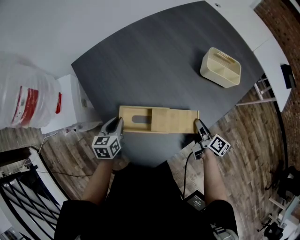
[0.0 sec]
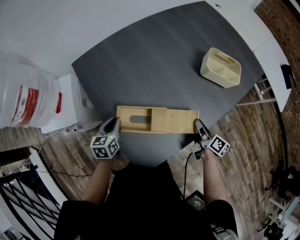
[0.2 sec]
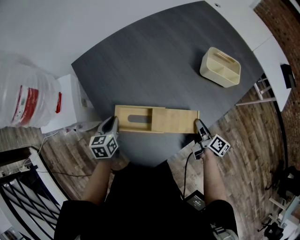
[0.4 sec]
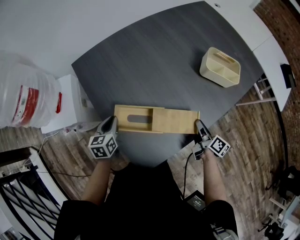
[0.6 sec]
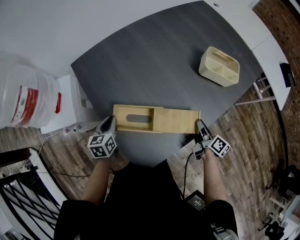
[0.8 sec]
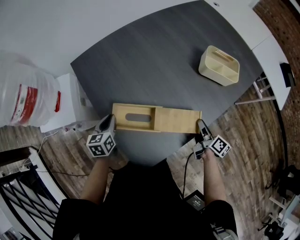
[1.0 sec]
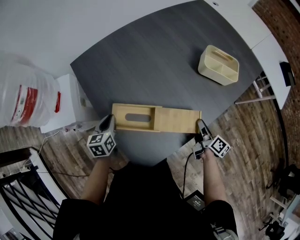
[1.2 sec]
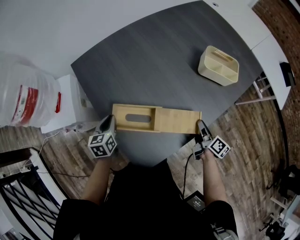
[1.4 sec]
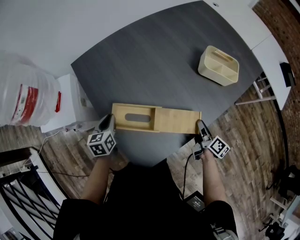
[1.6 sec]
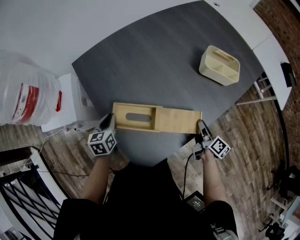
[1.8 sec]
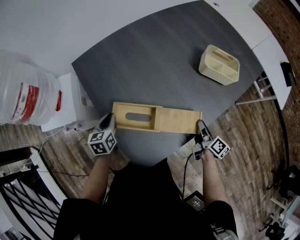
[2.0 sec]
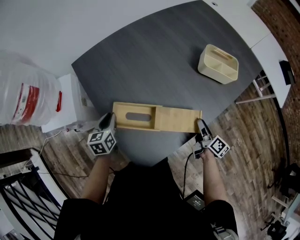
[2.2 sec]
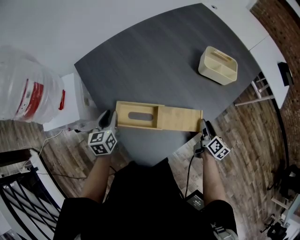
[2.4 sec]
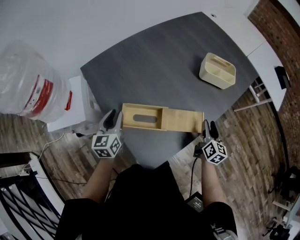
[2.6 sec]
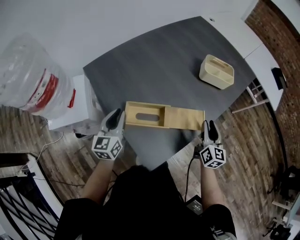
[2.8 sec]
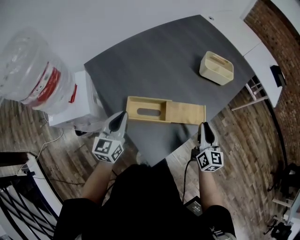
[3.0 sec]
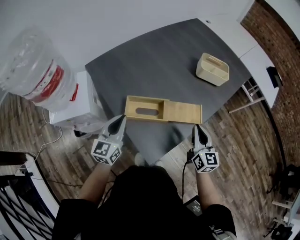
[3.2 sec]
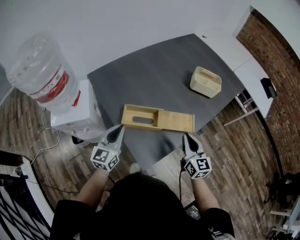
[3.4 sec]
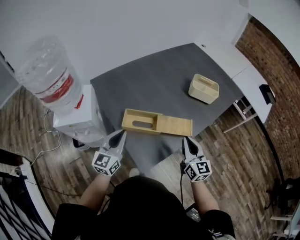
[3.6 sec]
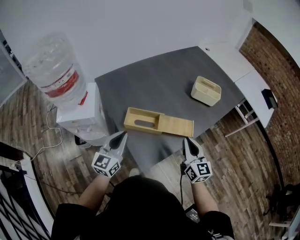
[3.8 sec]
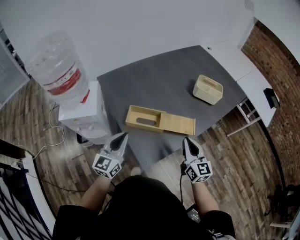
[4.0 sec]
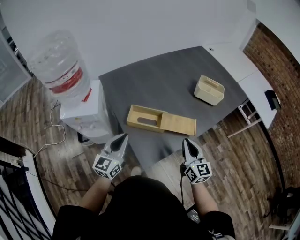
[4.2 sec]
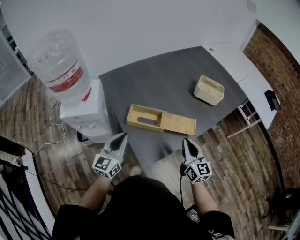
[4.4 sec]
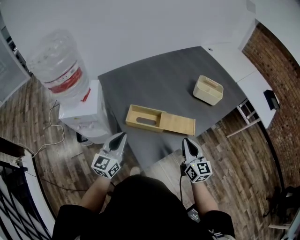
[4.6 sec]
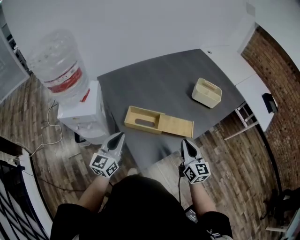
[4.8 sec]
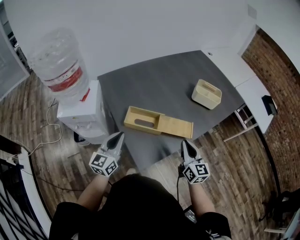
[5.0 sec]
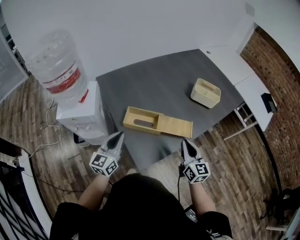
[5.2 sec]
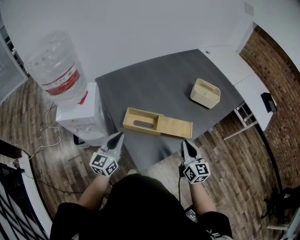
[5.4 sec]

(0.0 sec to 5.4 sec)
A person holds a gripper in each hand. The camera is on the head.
0.0 sec - 1.4 sec: The grippers stay close to where they were, moving slightly.
1.4 sec - 2.8 sec: The grippers both shift upward by about 10 cm. The left gripper swivels some 30 degrees, while the right gripper rolls counterclockwise, seen from behind, by roughly 40 degrees.
2.8 sec - 4.0 sec: The right gripper moves backward, to the left and upward, about 15 cm, changes its angle by some 20 degrees, and closes; the left gripper shifts roughly 10 cm backward.
4.0 sec - 5.4 sec: The grippers move only a little.

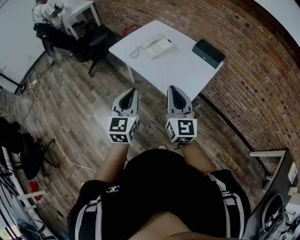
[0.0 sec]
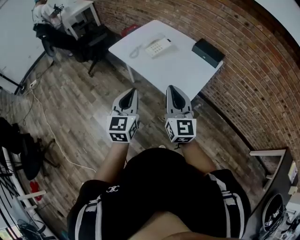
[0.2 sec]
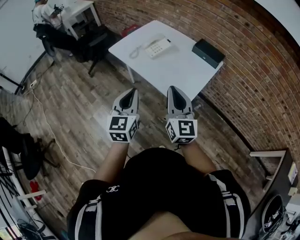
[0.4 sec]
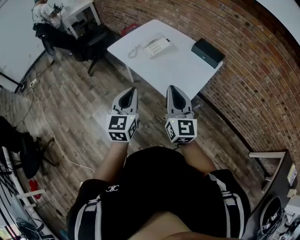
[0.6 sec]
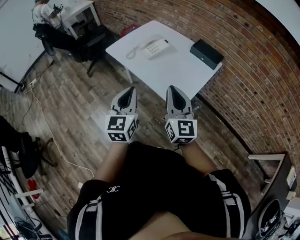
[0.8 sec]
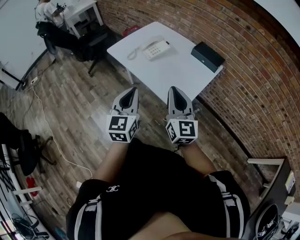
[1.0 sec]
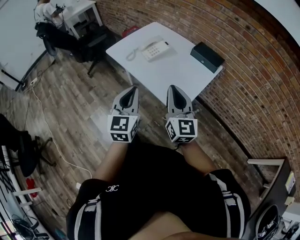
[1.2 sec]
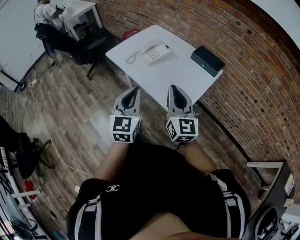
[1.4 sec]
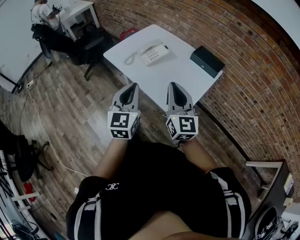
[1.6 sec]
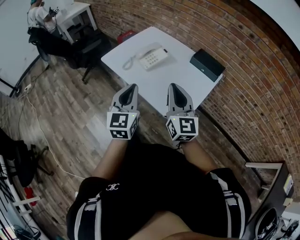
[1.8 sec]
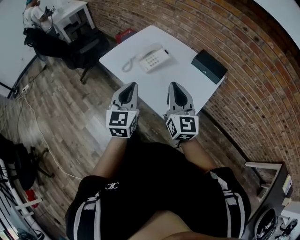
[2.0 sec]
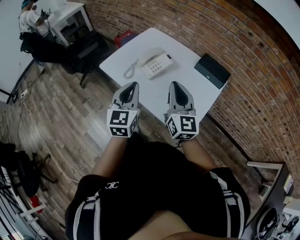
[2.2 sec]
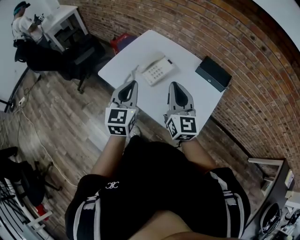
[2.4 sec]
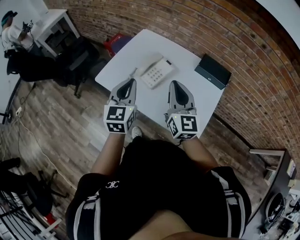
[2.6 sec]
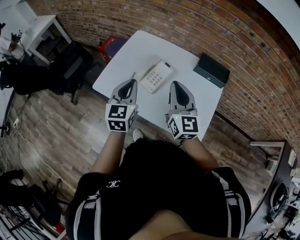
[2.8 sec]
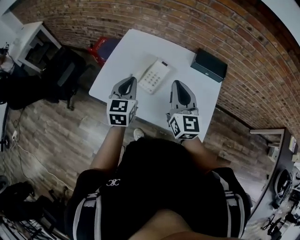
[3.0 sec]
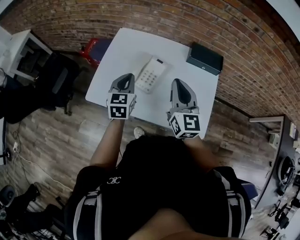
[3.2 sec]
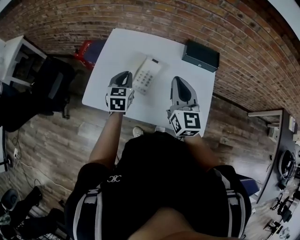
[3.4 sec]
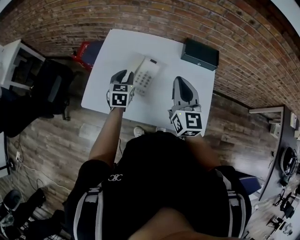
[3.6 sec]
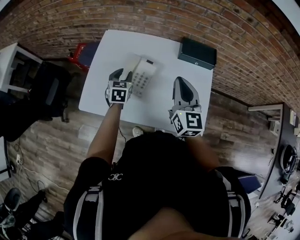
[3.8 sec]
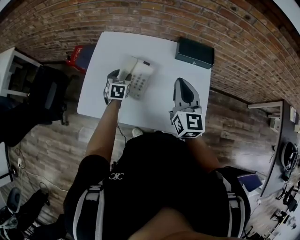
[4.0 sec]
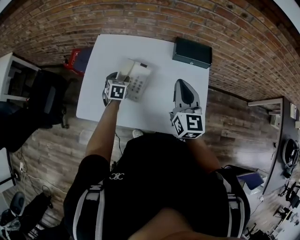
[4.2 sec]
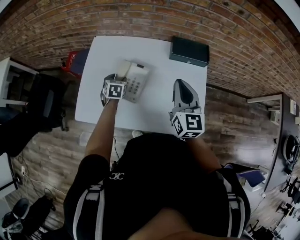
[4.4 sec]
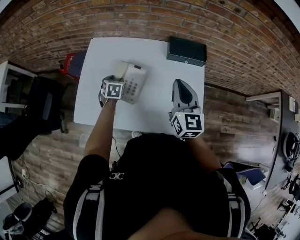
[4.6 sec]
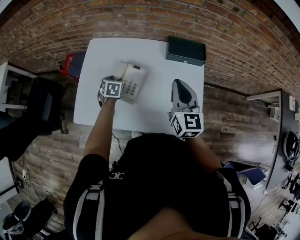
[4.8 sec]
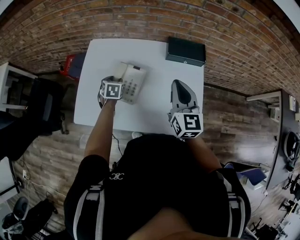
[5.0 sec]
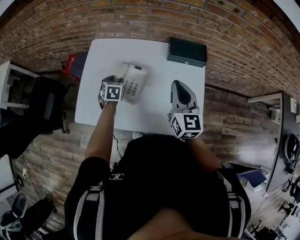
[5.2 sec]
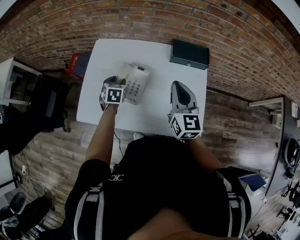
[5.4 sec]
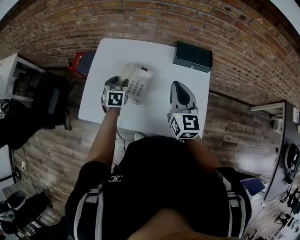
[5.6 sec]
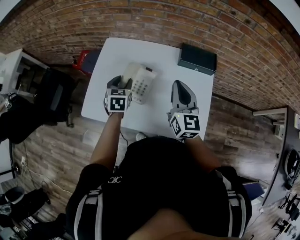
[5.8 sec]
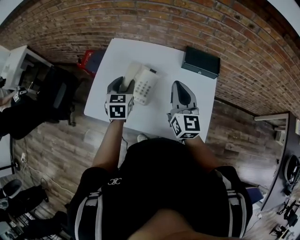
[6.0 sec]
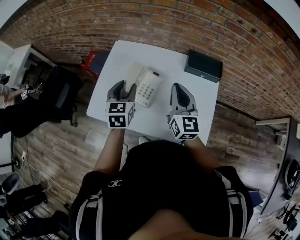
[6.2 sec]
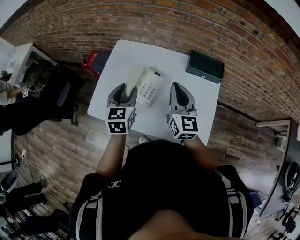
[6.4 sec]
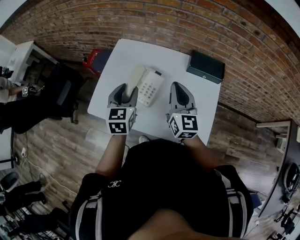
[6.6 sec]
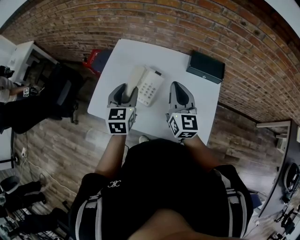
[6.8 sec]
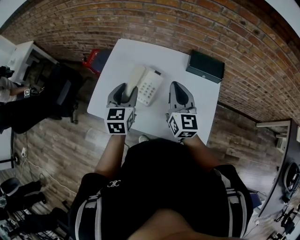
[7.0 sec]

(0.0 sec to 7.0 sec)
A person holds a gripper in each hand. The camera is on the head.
0.0 sec - 1.4 sec: The right gripper is displaced forward by roughly 5 cm, while the left gripper shifts roughly 5 cm to the right and forward.
1.4 sec - 2.8 sec: Both grippers move forward, about 30 cm. The left gripper changes its angle by approximately 20 degrees.
2.8 sec - 4.2 sec: The left gripper shifts some 30 cm downward and forward, tips its fingers downward by roughly 30 degrees, and opens its fingers. Meanwhile the right gripper moves to the right and forward, some 10 cm, and changes its angle by some 20 degrees.
4.2 sec - 5.6 sec: The left gripper heads upward, covering some 5 cm.
5.6 sec - 7.0 sec: The right gripper is displaced to the left by roughly 5 cm. Meanwhile the left gripper travels upward and backward by about 15 cm, and swivels approximately 20 degrees.

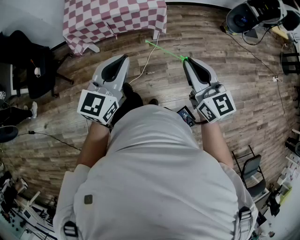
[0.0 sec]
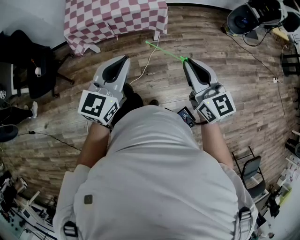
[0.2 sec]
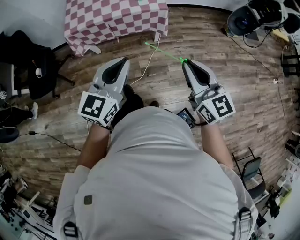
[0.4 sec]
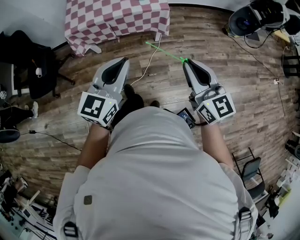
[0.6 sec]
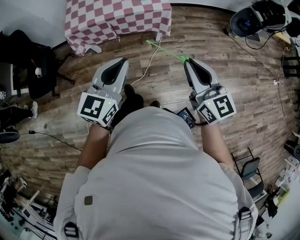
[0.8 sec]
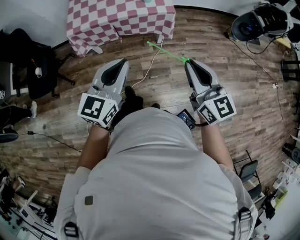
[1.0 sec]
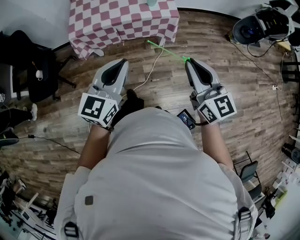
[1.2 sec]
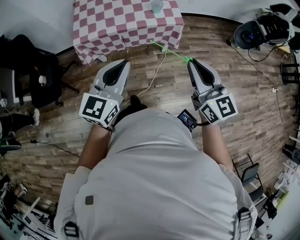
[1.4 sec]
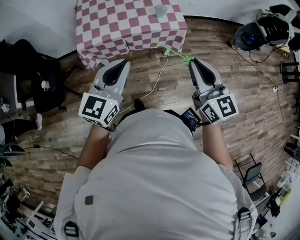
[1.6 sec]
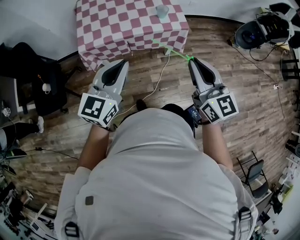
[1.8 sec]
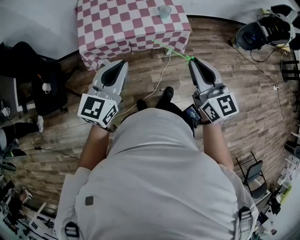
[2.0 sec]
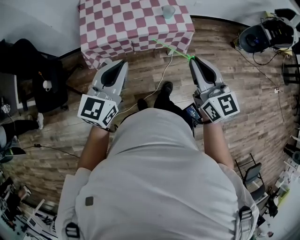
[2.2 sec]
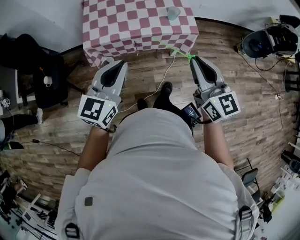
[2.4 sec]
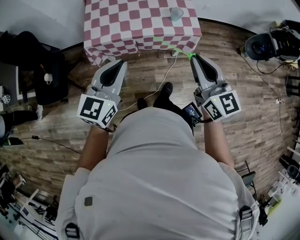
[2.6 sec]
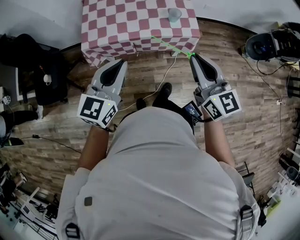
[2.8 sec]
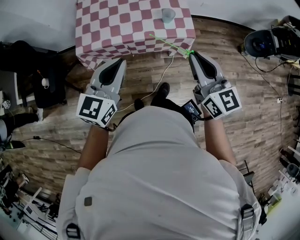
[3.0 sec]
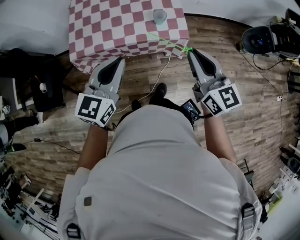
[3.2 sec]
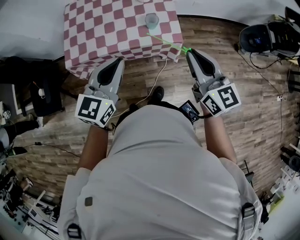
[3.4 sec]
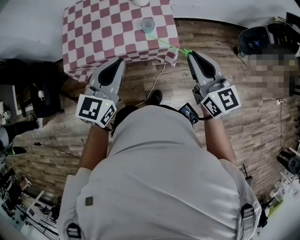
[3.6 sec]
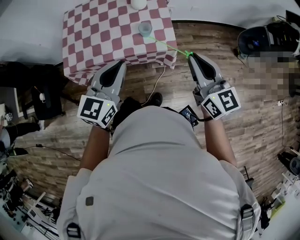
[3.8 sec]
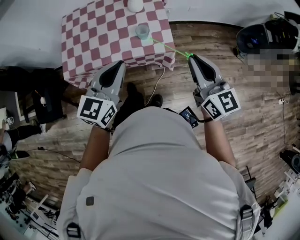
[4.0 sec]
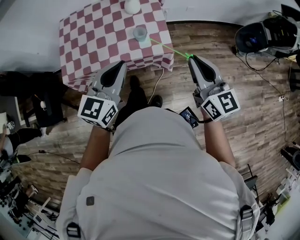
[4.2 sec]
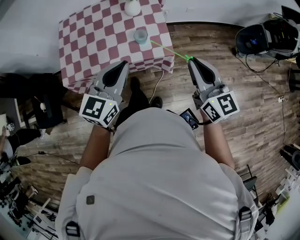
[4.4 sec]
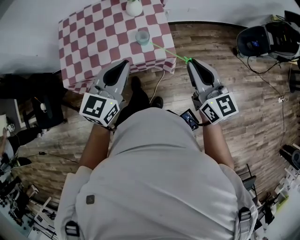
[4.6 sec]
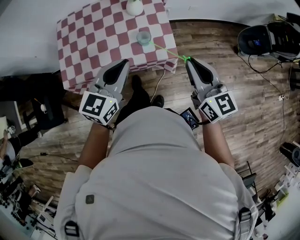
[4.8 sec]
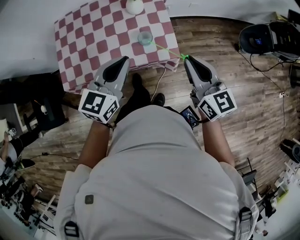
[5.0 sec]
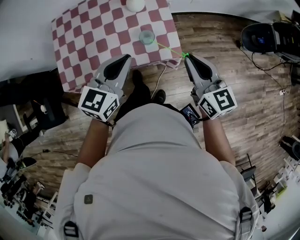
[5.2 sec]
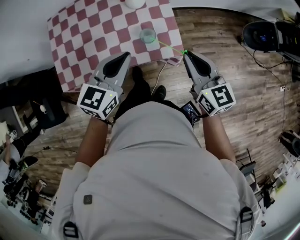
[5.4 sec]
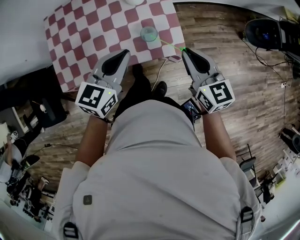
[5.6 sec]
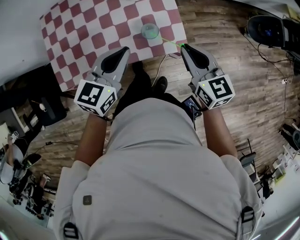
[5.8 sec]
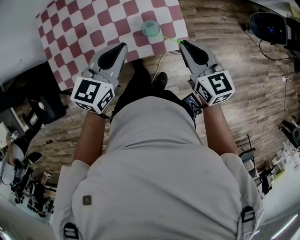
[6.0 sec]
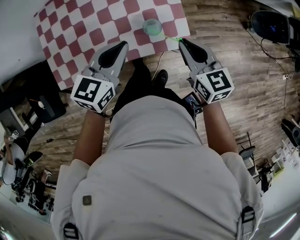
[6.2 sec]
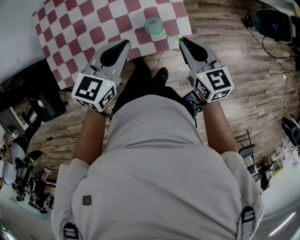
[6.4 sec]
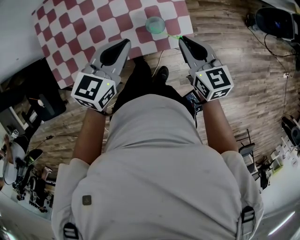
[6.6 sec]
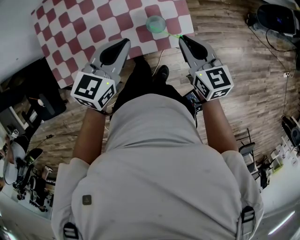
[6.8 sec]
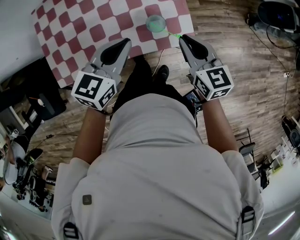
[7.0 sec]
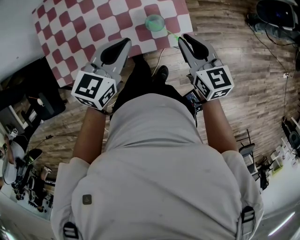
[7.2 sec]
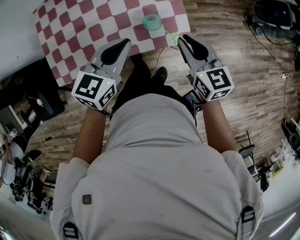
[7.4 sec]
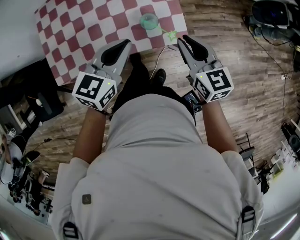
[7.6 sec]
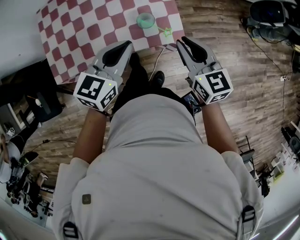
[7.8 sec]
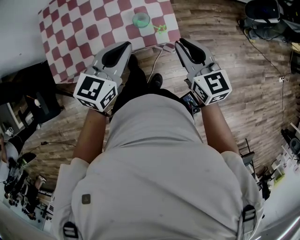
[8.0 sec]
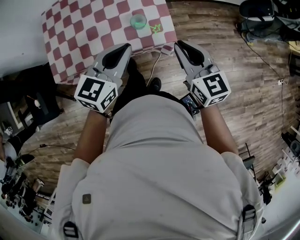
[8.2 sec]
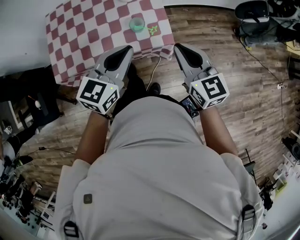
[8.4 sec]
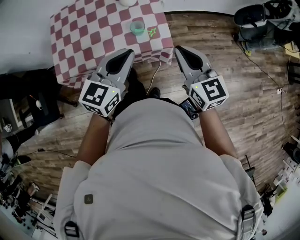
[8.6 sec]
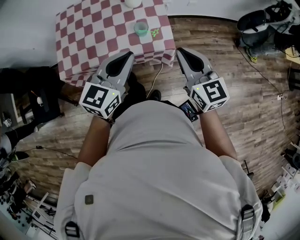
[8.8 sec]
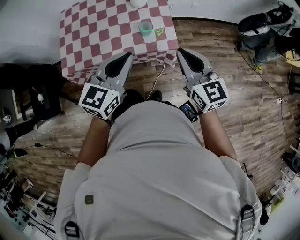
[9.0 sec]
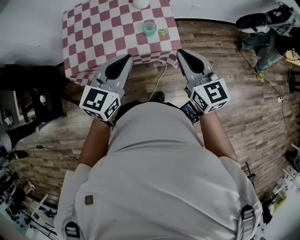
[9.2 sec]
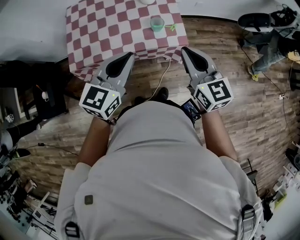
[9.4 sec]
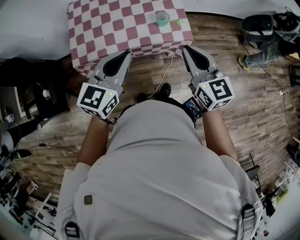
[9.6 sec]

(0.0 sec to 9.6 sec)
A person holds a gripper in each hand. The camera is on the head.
0.0 sec - 1.6 sec: The right gripper is displaced forward and to the left by about 20 cm, while the left gripper moves to the left and forward, approximately 20 cm.
1.6 sec - 3.2 sec: The grippers both shift forward by some 15 cm.
3.2 sec - 4.8 sec: Both grippers move forward and to the right, approximately 15 cm.
4.8 sec - 6.4 sec: The left gripper shifts roughly 15 cm forward, downward and to the left, while the right gripper moves downward, forward and to the left, about 20 cm, and turns by roughly 20 degrees.
6.4 sec - 8.0 sec: The left gripper goes approximately 10 cm backward and to the right; the right gripper goes approximately 10 cm backward and upward.
8.0 sec - 9.6 sec: The right gripper shifts roughly 20 cm backward, upward and to the left; the left gripper goes some 20 cm backward, to the left and upward.

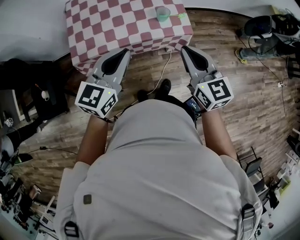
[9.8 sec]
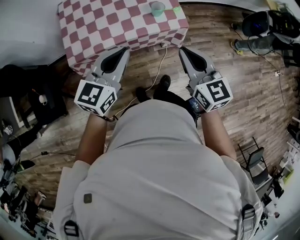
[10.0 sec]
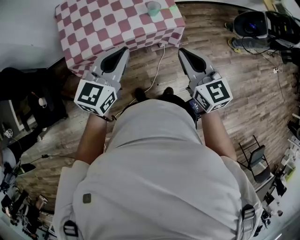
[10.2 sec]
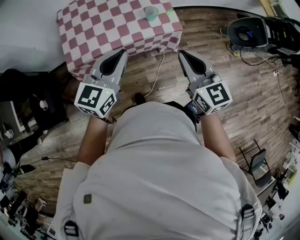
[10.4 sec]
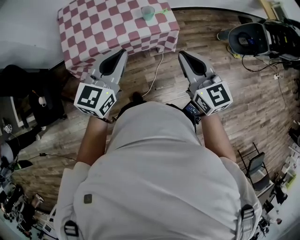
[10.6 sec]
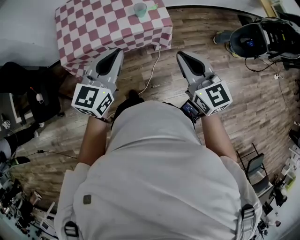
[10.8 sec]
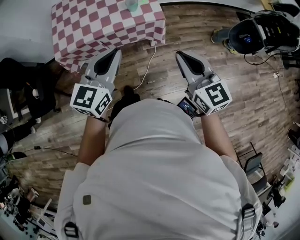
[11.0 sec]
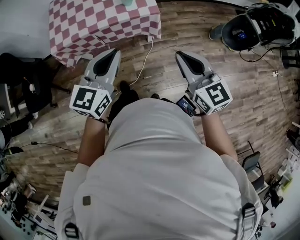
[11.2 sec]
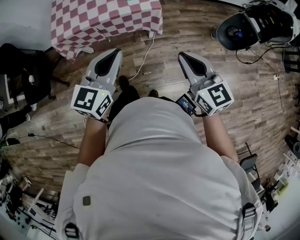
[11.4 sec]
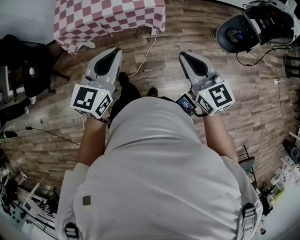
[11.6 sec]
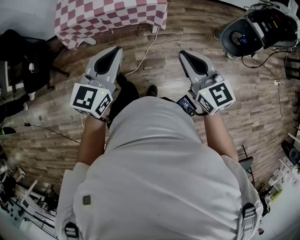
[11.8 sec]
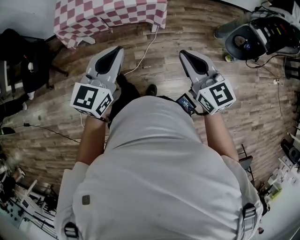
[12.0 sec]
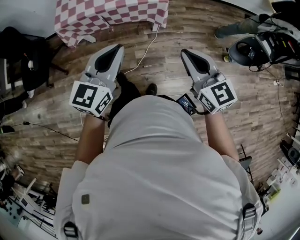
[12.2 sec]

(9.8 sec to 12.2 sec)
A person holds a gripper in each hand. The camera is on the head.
9.8 sec - 11.0 sec: Both grippers move to the right and backward, some 20 cm.
11.0 sec - 12.2 sec: The grippers both shift backward by about 10 cm.
